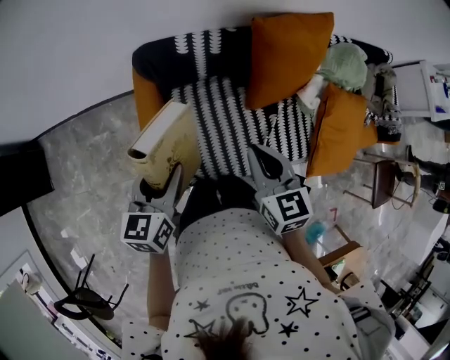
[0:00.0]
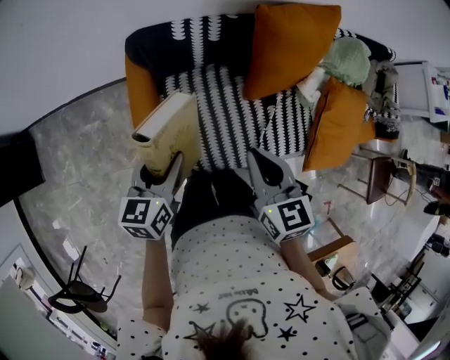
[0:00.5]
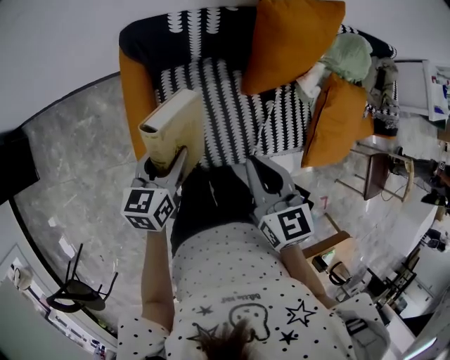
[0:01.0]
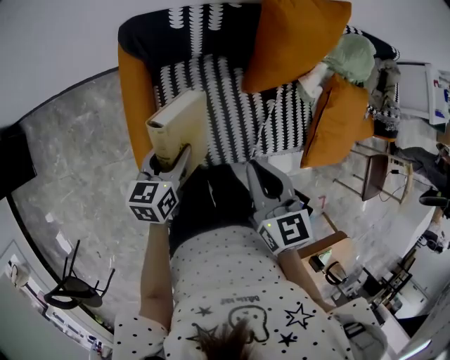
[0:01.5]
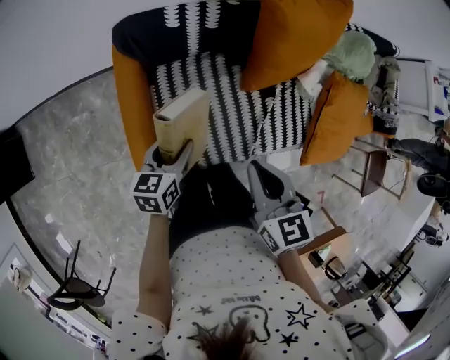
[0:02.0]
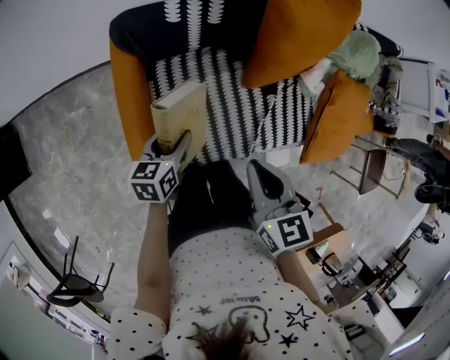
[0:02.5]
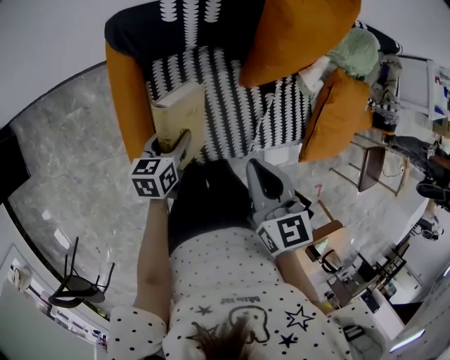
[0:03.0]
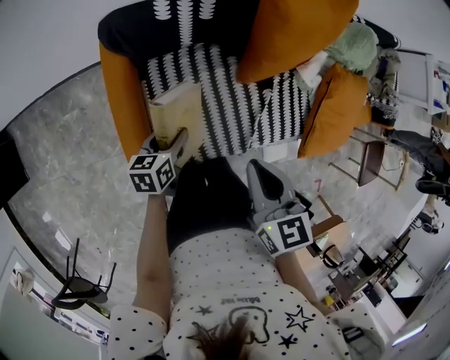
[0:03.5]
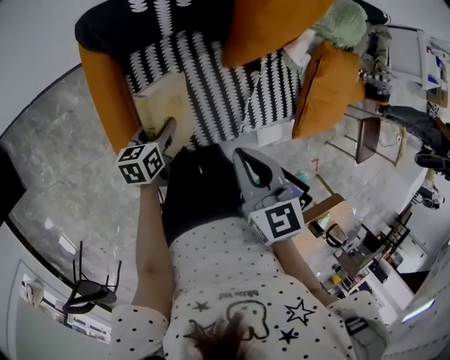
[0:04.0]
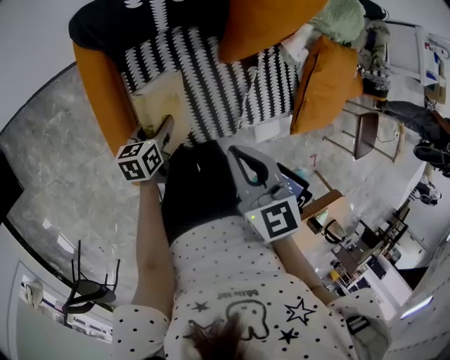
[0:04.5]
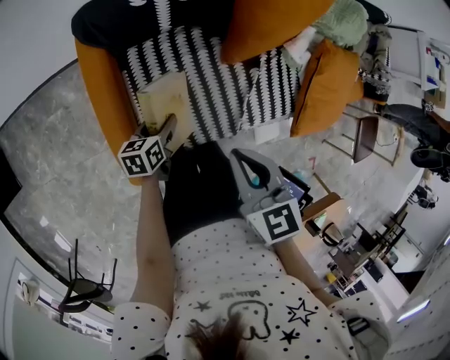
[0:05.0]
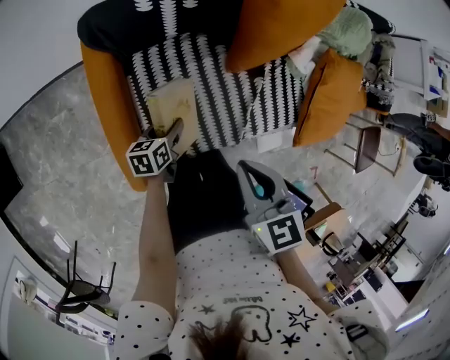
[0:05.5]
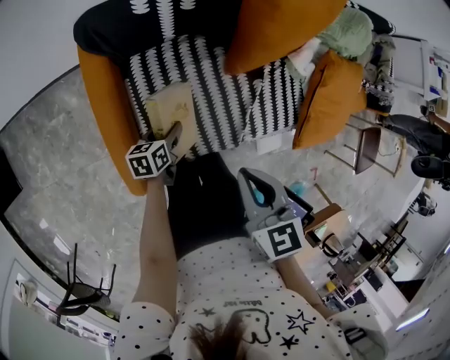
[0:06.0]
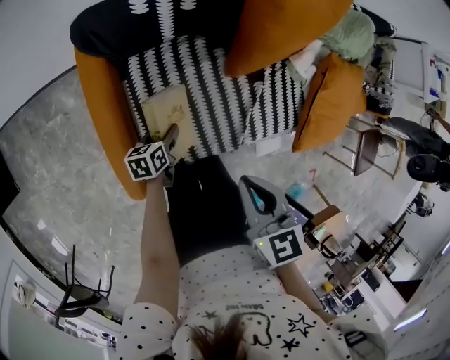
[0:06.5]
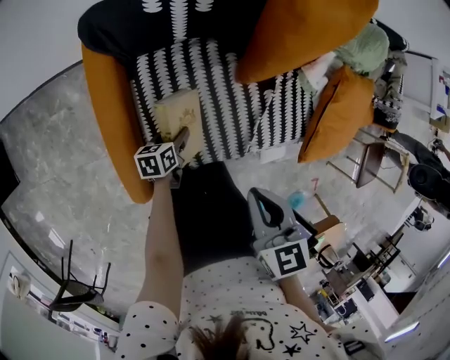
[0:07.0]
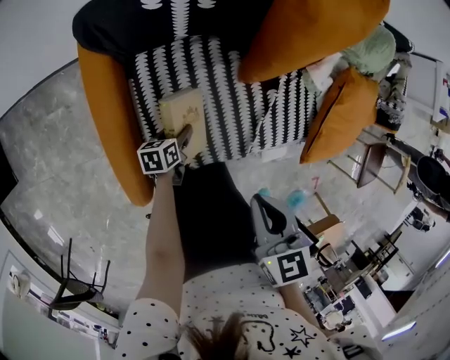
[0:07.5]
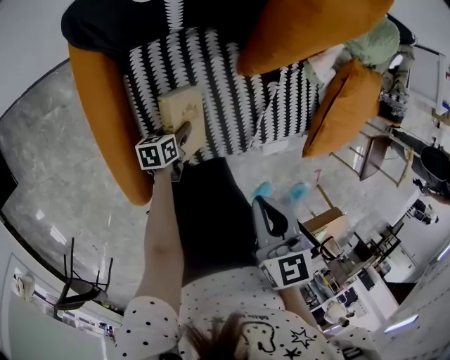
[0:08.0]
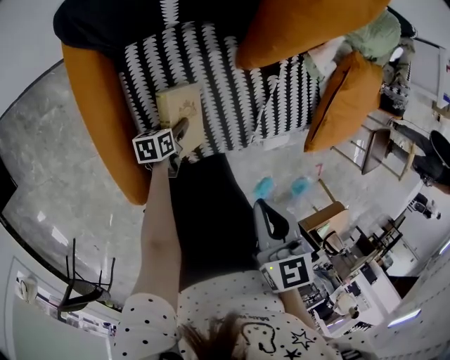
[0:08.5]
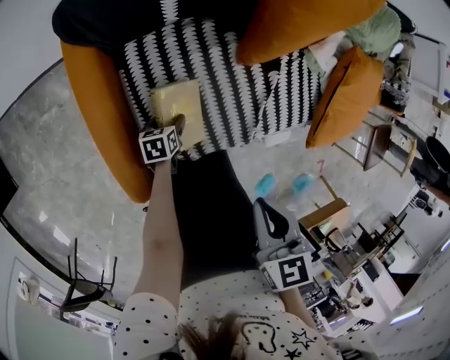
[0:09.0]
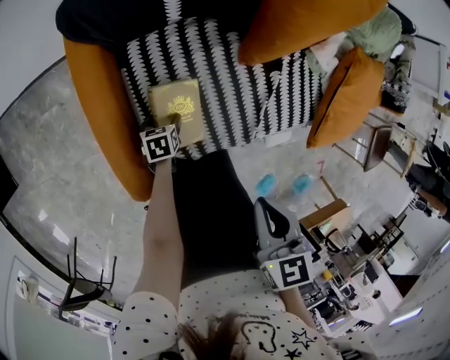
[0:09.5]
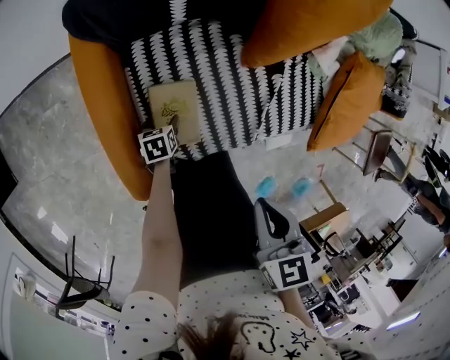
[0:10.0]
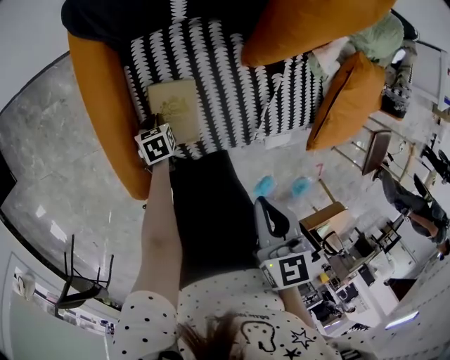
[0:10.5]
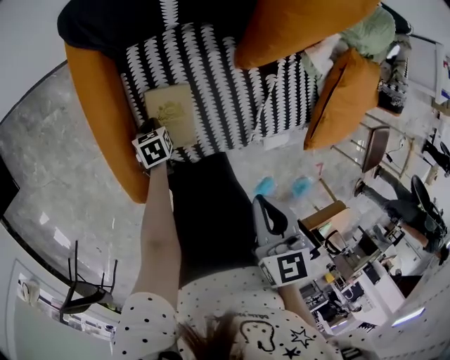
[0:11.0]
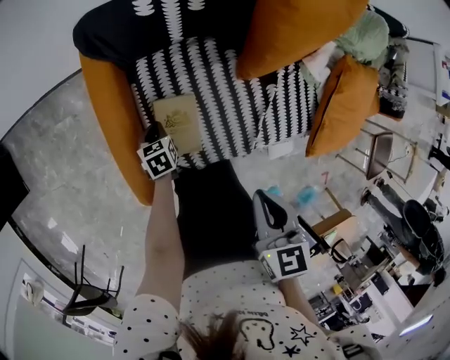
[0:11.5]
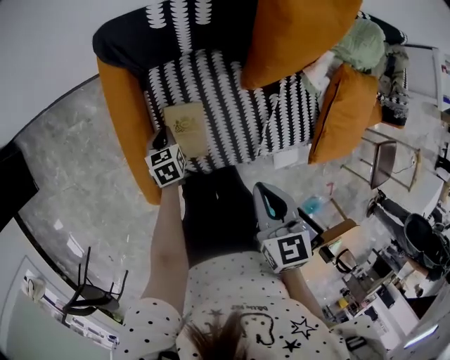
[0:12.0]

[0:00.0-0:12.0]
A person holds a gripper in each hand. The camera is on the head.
0:00.0 to 0:02.0: The left gripper travels downward by roughly 15 cm.
0:02.0 to 0:04.0: The left gripper travels downward by approximately 10 cm.
0:04.0 to 0:06.0: The left gripper heads downward, covering approximately 10 cm.
0:06.0 to 0:08.0: The left gripper moves downward, roughly 10 cm.
0:08.0 to 0:10.0: The left gripper changes place by about 5 cm, and rotates some 20 degrees.
0:10.0 to 0:12.0: The left gripper goes about 15 cm upward, rotates roughly 20 degrees, and closes its fingers.

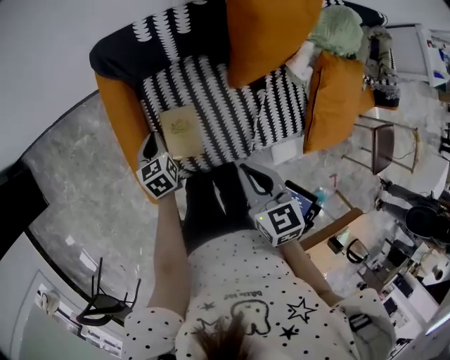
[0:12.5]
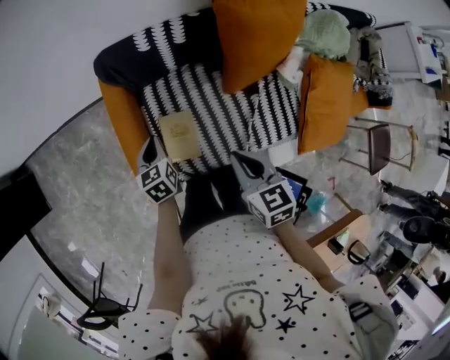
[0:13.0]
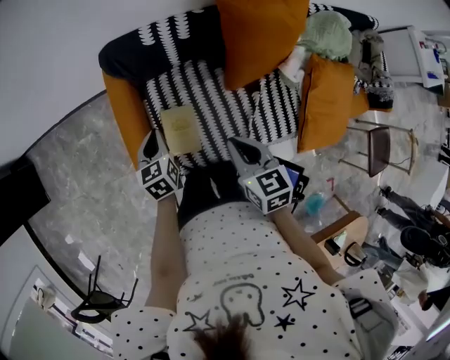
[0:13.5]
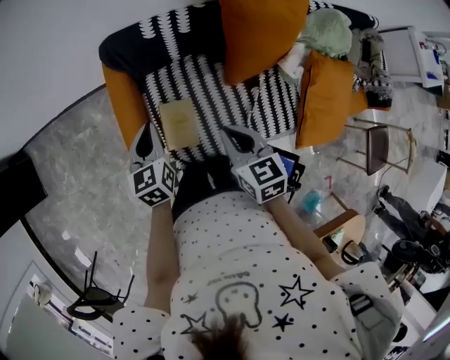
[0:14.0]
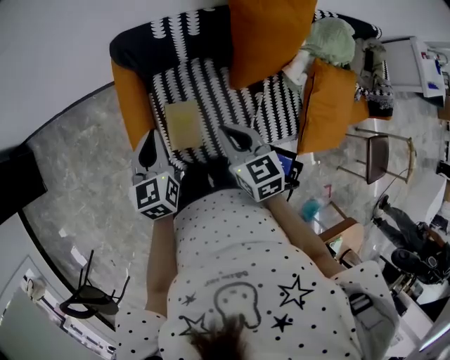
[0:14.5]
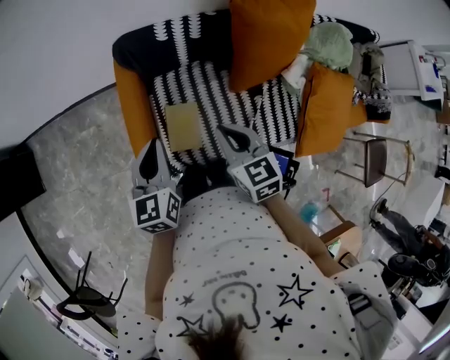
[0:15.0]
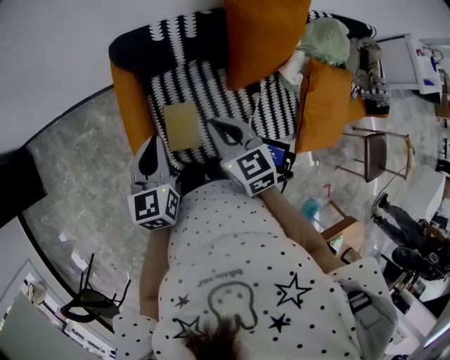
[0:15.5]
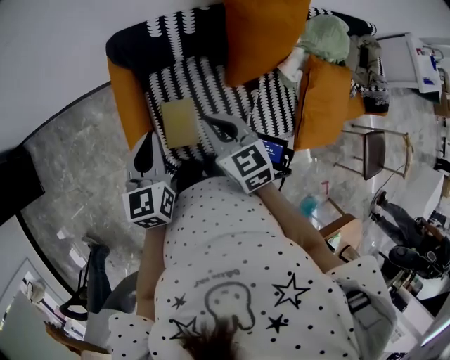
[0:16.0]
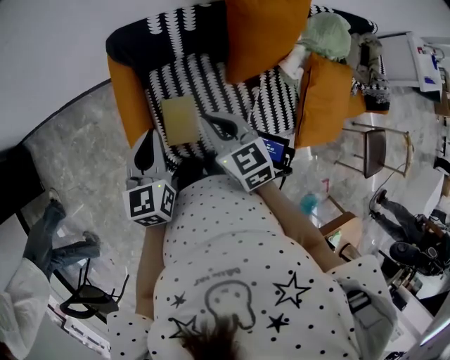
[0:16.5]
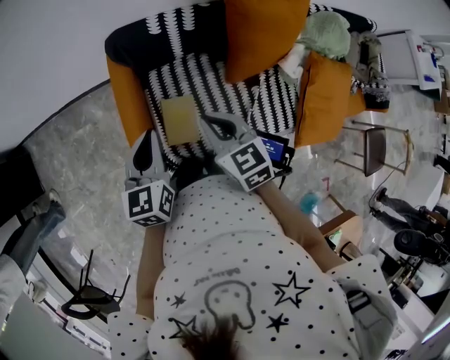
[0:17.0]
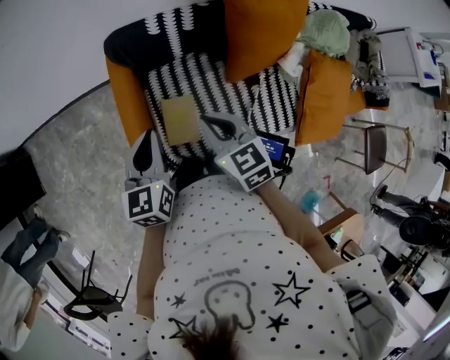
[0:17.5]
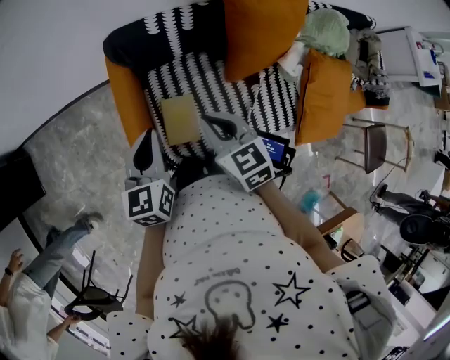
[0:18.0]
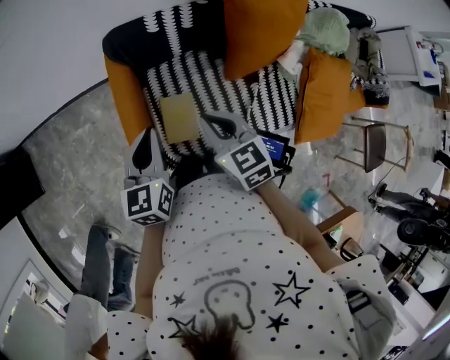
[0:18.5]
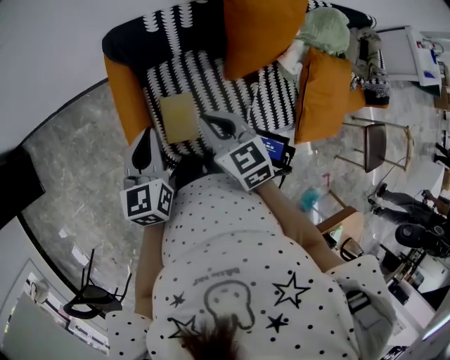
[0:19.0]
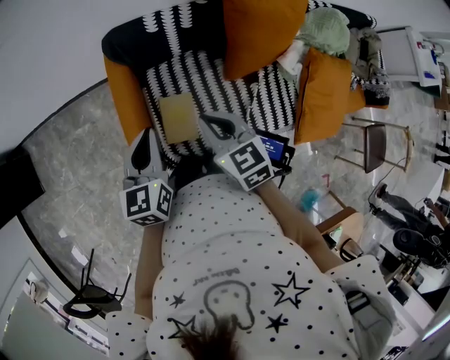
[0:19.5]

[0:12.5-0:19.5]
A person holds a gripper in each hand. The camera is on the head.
0:12.5 to 0:14.5: The left gripper heads upward, covering some 20 cm, and swivels roughly 20 degrees; the right gripper ends up roughly 5 cm from where it was.
0:14.5 to 0:16.0: The grippers move only a little.
0:16.0 to 0:19.5: Neither gripper changes place.

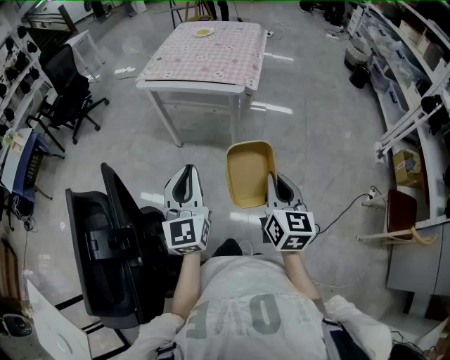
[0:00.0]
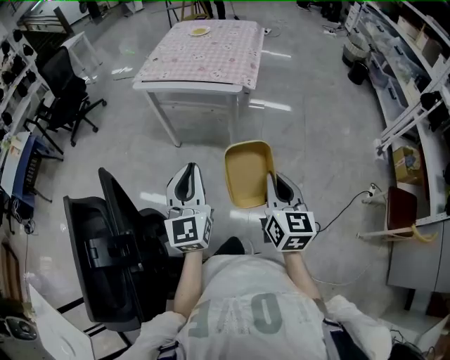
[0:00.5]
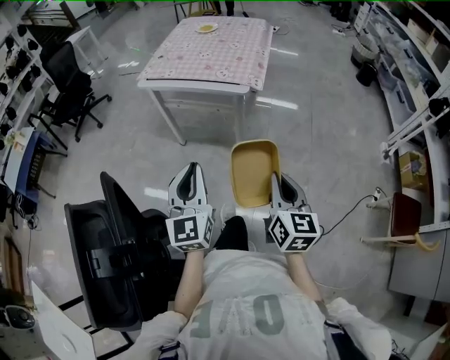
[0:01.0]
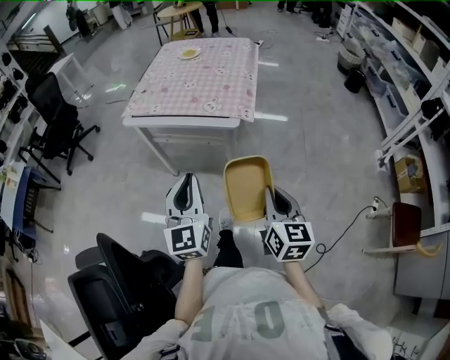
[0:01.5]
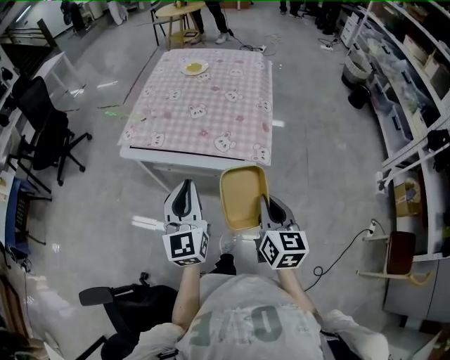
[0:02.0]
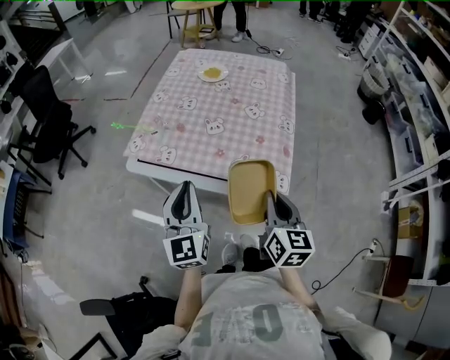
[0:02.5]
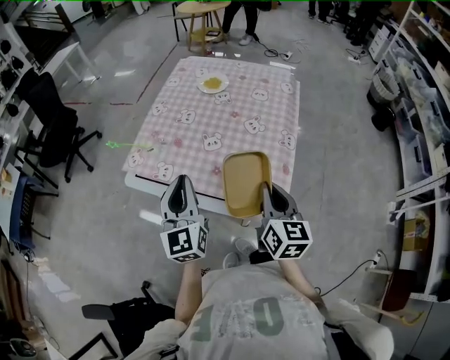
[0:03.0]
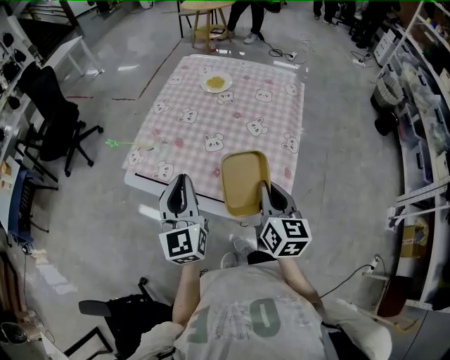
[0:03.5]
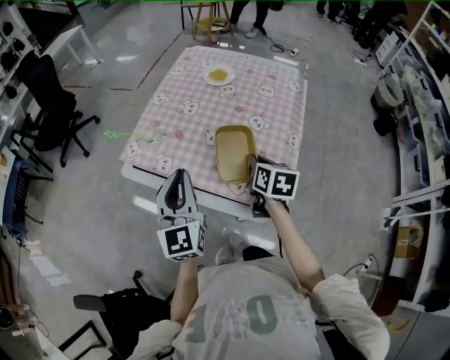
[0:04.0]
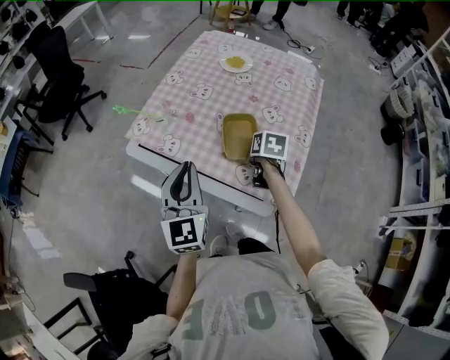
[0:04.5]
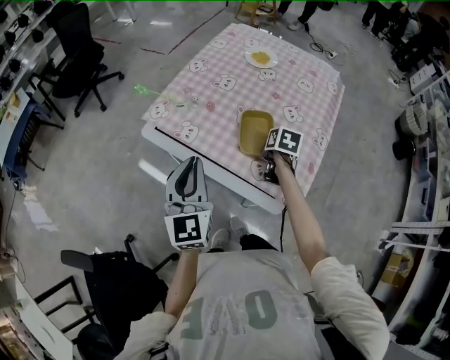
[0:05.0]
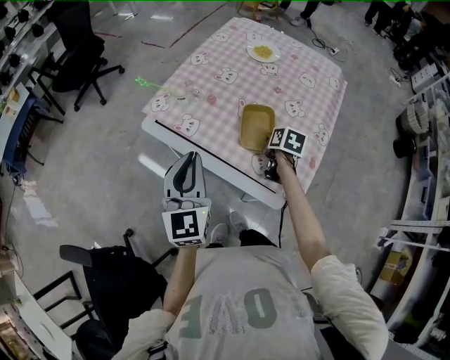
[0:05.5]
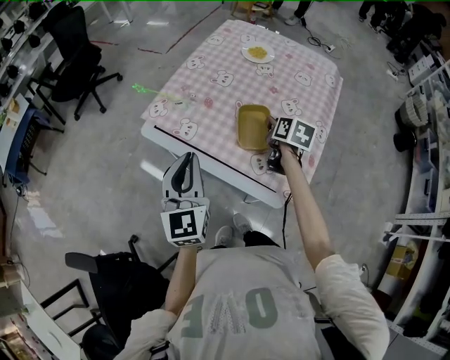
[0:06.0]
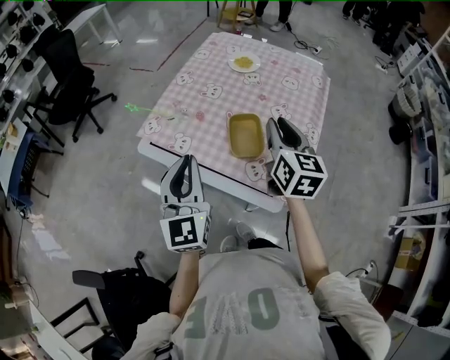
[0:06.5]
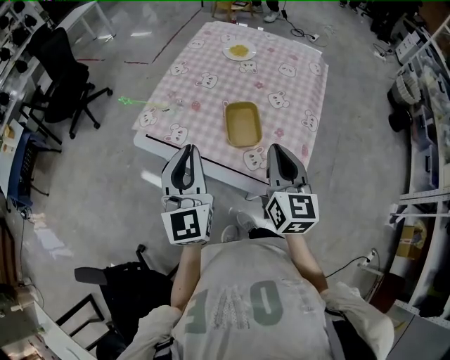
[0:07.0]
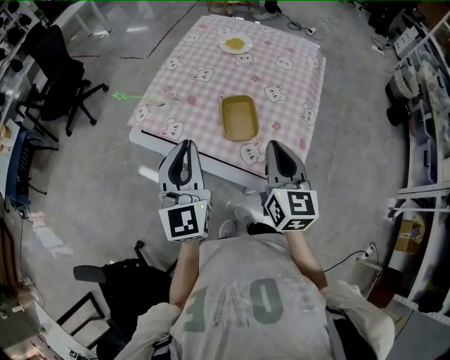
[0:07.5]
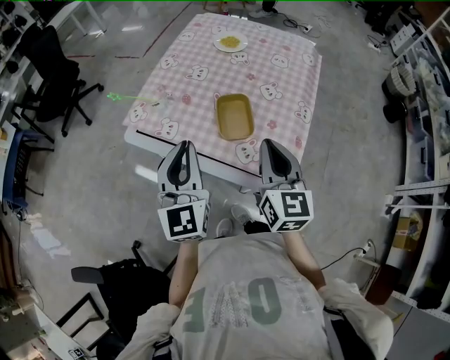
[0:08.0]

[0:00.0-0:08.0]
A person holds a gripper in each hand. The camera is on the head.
0:00.0 to 0:02.0: Both grippers move forward, approximately 35 cm.
0:02.0 to 0:04.0: The right gripper is displaced forward by roughly 35 cm, and turns by approximately 20 degrees. Meanwhile the left gripper goes approximately 20 cm forward.
0:04.0 to 0:06.0: The right gripper is displaced forward by some 10 cm, reaches about 10 cm downward, then returns, and opens its fingers; the left gripper is displaced to the left by about 5 cm.
0:06.0 to 0:08.0: The right gripper heads backward and upward, covering some 20 cm, tilts its fingers about 30 degrees upward, and closes its fingers. Meanwhile the left gripper ends up some 5 cm from where it was.
